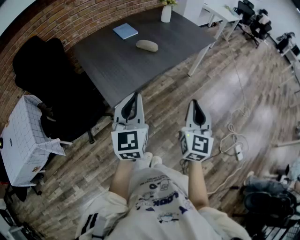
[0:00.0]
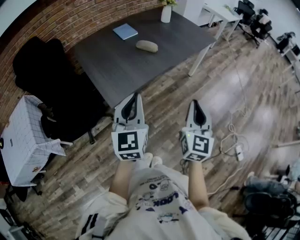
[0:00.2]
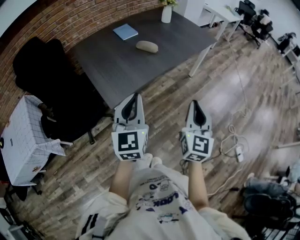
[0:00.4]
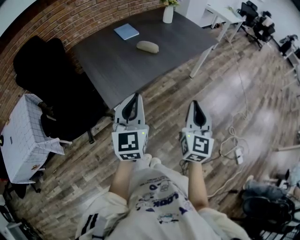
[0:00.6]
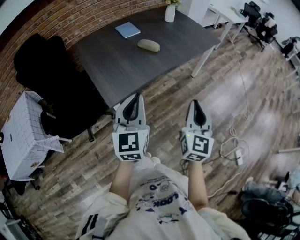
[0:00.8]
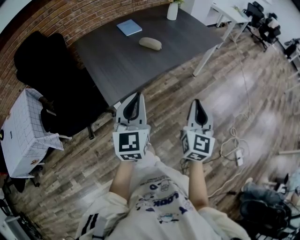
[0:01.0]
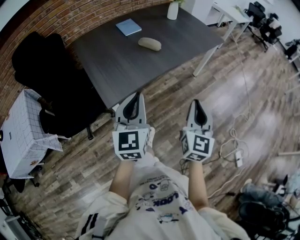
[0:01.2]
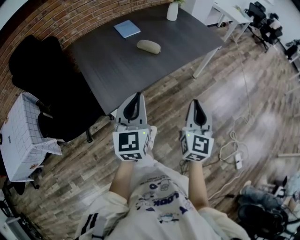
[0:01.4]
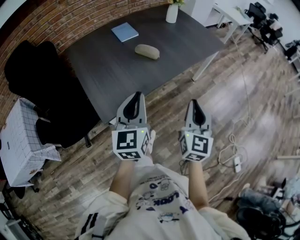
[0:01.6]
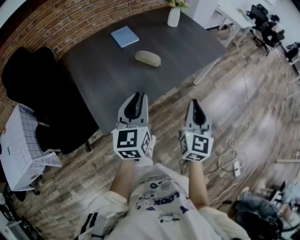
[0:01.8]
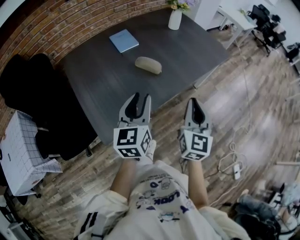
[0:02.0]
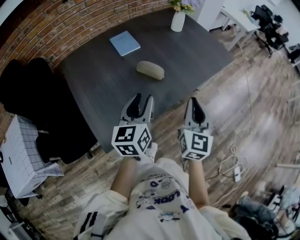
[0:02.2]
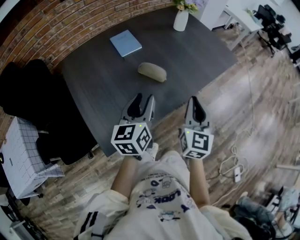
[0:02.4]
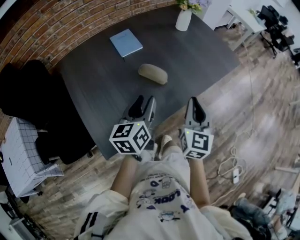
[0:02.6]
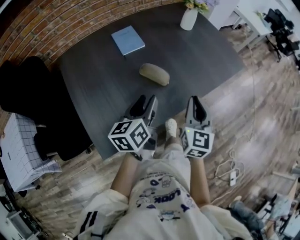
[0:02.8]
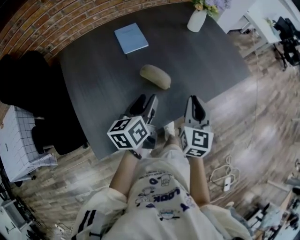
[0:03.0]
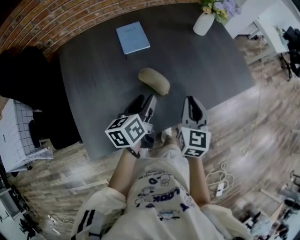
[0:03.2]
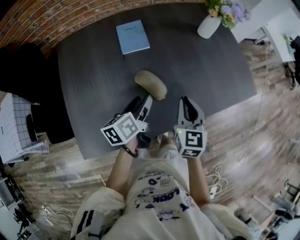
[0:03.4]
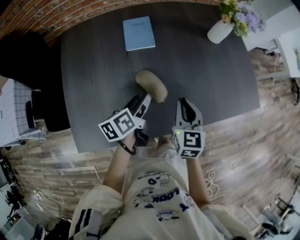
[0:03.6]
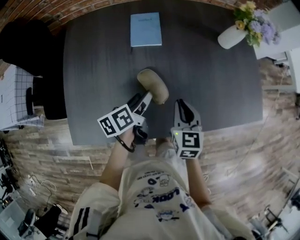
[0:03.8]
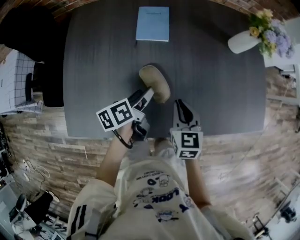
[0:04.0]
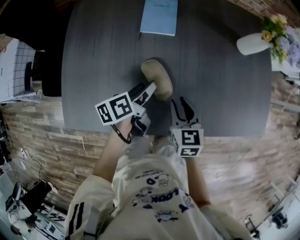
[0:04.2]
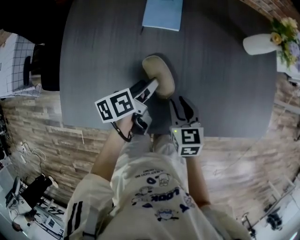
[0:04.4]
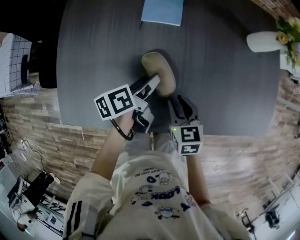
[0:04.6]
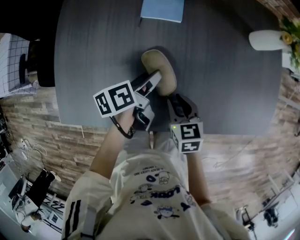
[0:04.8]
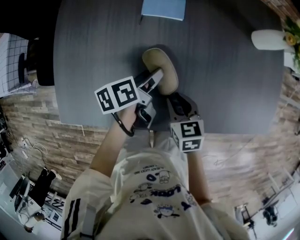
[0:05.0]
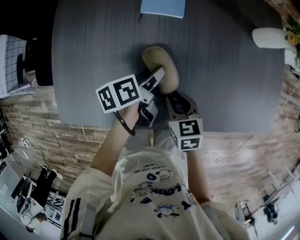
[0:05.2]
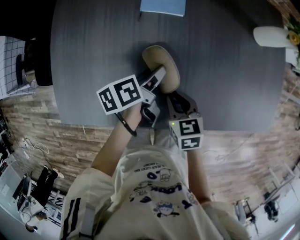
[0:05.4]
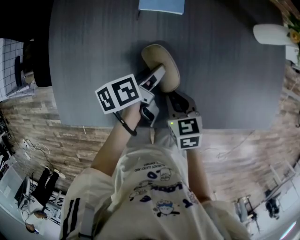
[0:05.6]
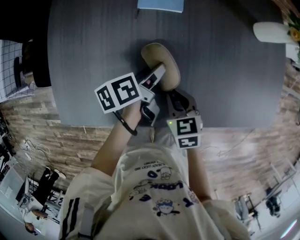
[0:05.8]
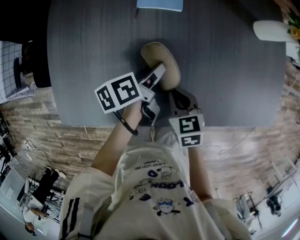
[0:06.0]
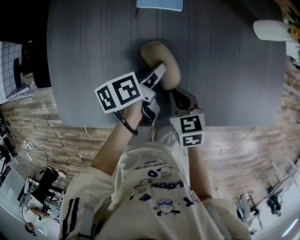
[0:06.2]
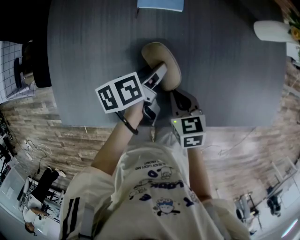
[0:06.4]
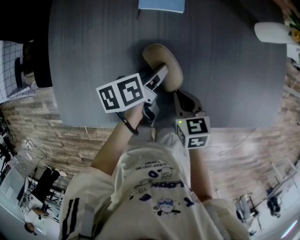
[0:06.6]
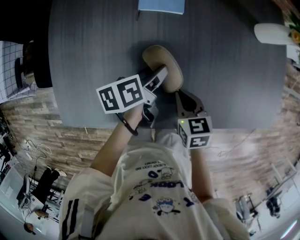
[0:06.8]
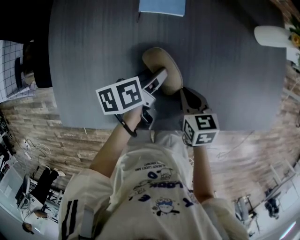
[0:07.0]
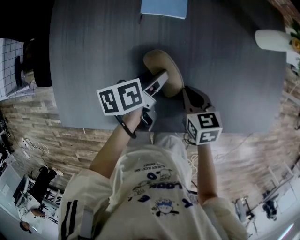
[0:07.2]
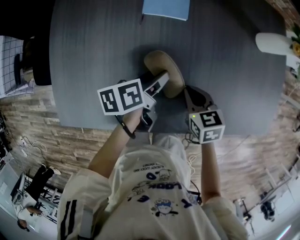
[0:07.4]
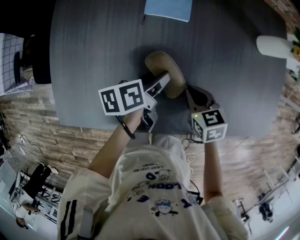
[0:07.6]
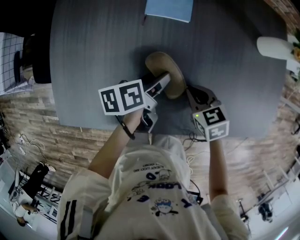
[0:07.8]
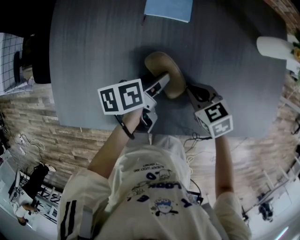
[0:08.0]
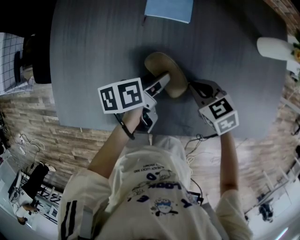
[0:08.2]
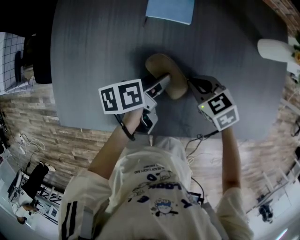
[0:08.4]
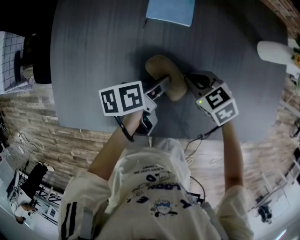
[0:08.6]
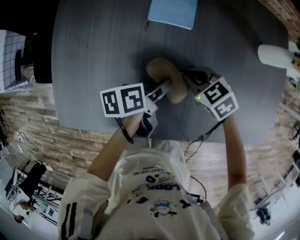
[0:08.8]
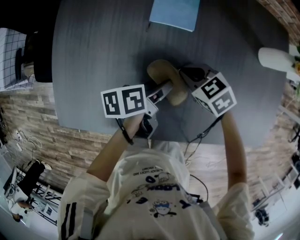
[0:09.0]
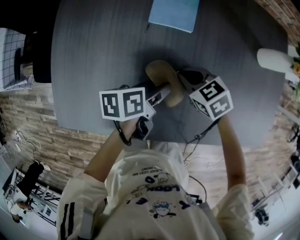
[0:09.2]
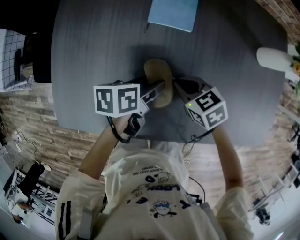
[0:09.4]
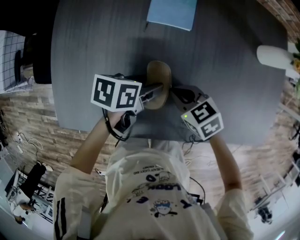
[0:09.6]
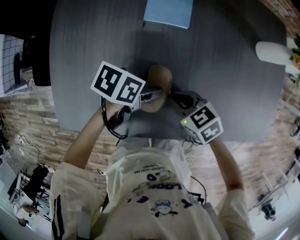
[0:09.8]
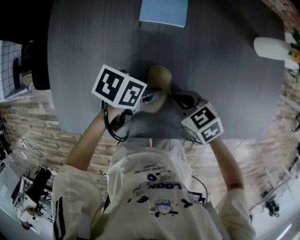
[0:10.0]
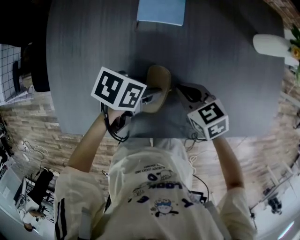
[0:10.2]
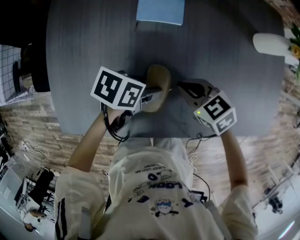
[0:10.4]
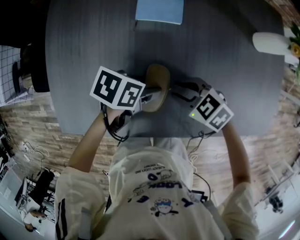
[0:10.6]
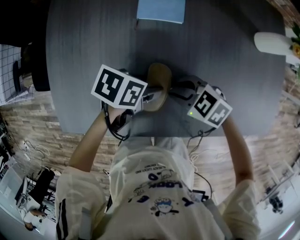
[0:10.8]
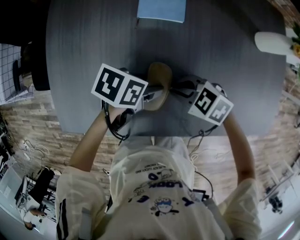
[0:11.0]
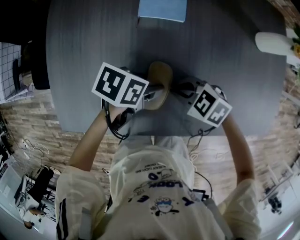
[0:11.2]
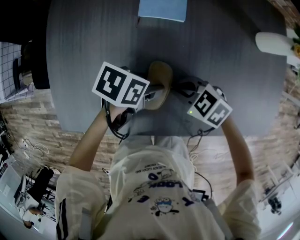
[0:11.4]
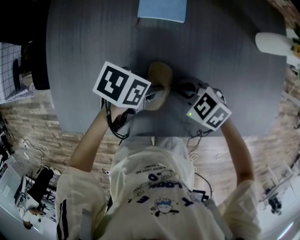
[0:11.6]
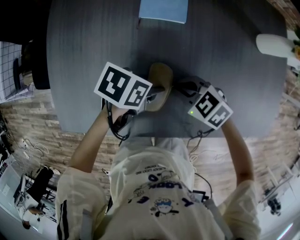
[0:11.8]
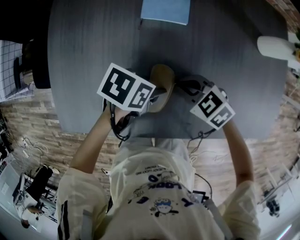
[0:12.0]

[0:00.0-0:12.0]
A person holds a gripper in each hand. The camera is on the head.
0.0 to 1.6 s: Both grippers travel together forward, approximately 15 cm.
1.6 to 3.0 s: Both grippers travel together forward, some 30 cm. The left gripper rotates approximately 40 degrees, and opens up.
3.0 to 4.4 s: Both grippers travel together downward, roughly 15 cm. The right gripper rotates some 50 degrees, and opens, while the left gripper swivels approximately 40 degrees.
4.4 to 6.0 s: The right gripper closes up.
6.0 to 7.6 s: The right gripper heads forward, covering some 5 cm.
7.6 to 9.0 s: The right gripper moves forward, roughly 10 cm, and turns by about 30 degrees.
9.0 to 10.4 s: The left gripper changes its angle by roughly 40 degrees.
10.4 to 12.0 s: The right gripper opens, then closes once more.

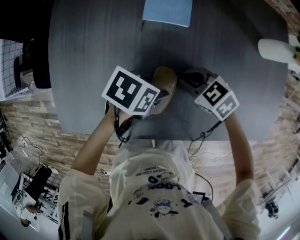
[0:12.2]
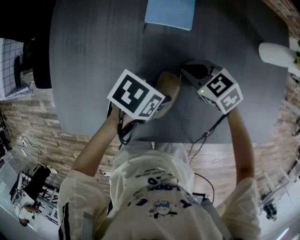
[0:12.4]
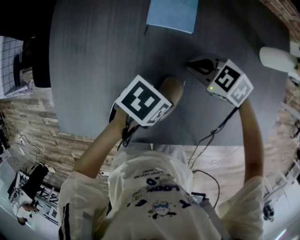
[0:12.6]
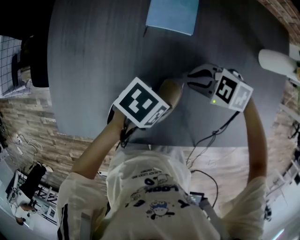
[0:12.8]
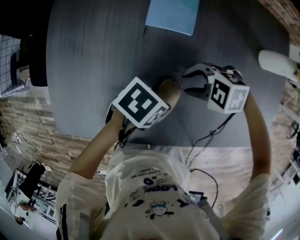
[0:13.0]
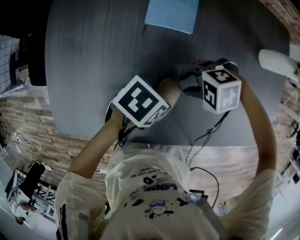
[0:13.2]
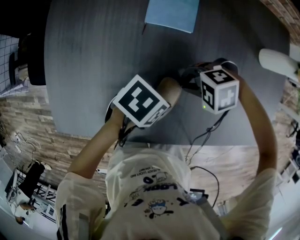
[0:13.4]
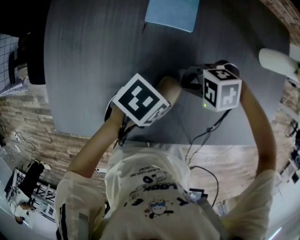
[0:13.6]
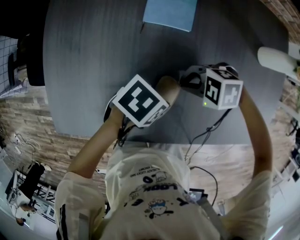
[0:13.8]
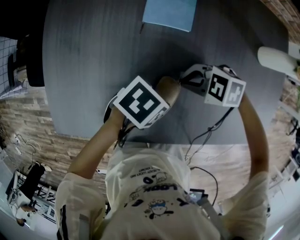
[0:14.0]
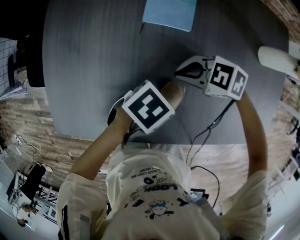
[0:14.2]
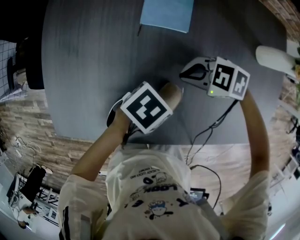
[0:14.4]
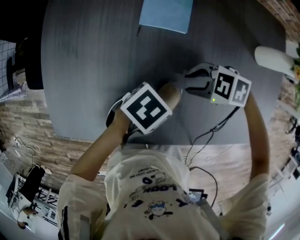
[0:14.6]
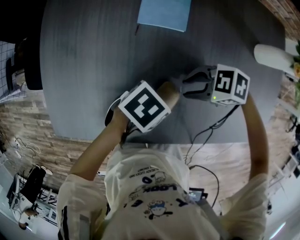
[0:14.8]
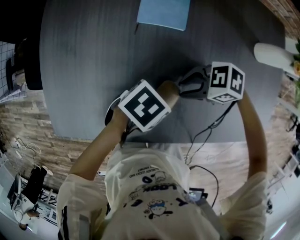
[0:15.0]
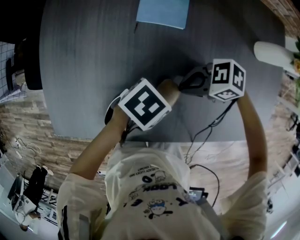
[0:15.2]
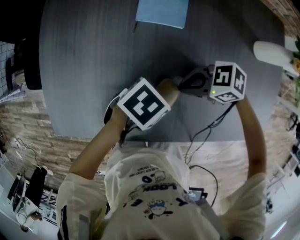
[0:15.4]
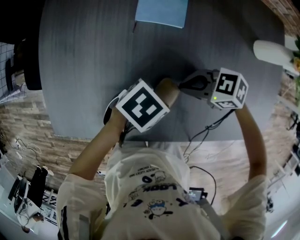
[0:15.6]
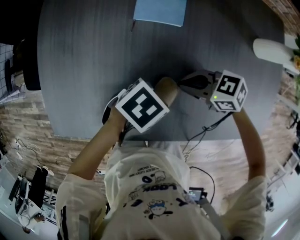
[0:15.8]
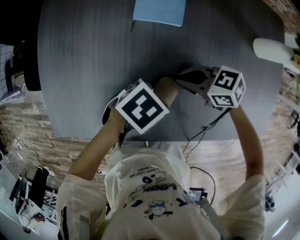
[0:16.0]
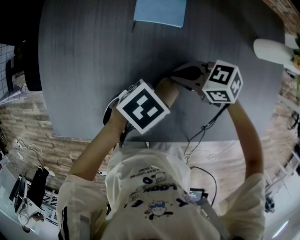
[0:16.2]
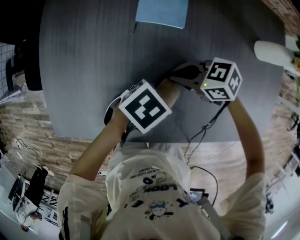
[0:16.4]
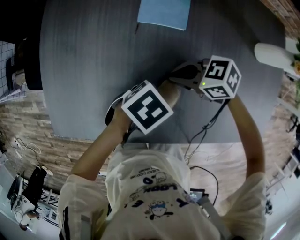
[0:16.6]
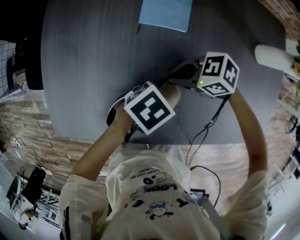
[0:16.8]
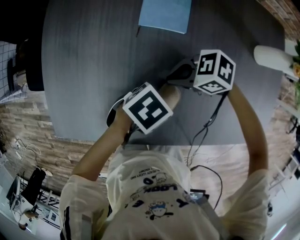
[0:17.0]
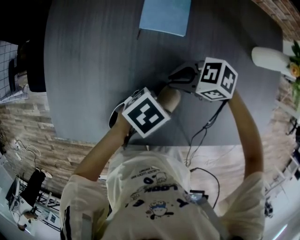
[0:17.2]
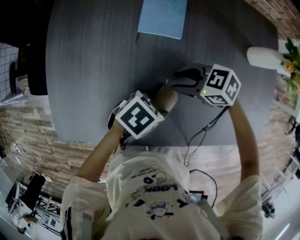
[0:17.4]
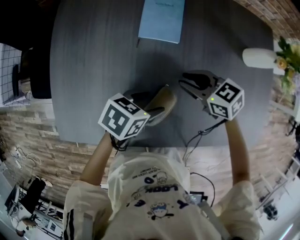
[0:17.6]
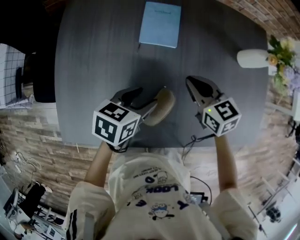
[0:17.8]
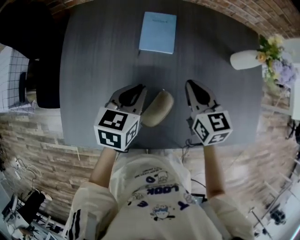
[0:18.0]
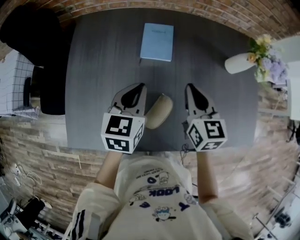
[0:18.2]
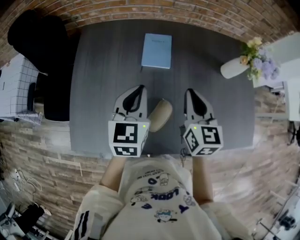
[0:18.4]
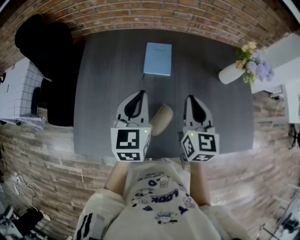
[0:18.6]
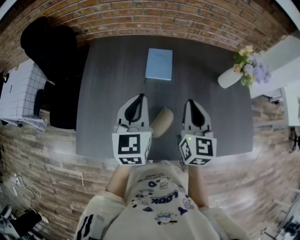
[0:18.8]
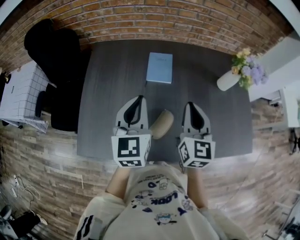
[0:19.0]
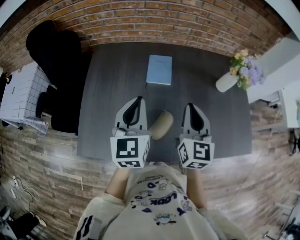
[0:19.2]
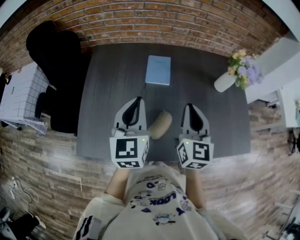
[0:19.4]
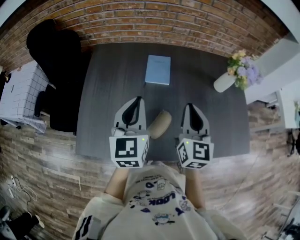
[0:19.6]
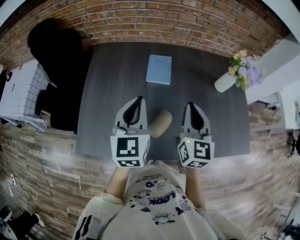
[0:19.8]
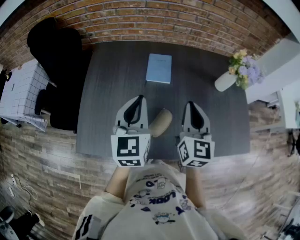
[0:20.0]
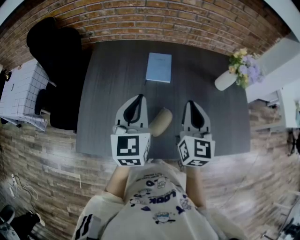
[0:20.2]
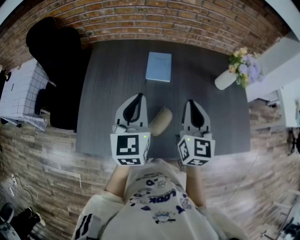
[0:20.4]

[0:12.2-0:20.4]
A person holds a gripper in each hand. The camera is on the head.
12.2 to 13.8 s: The right gripper swivels about 40 degrees, and opens, then closes again.
13.8 to 15.4 s: The right gripper turns by some 30 degrees, and opens and closes again.
15.4 to 17.2 s: The right gripper changes place by about 5 cm.
17.2 to 18.8 s: Both grippers move upward, approximately 25 cm. The left gripper points its fingers about 40 degrees further upward, and closes its fingers. The right gripper points its fingers approximately 30 degrees further upward, and opens, then closes again.
18.8 to 20.4 s: The grippers make only small movements.

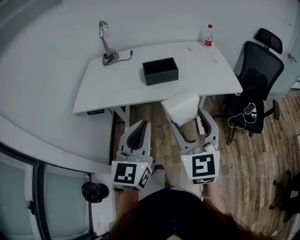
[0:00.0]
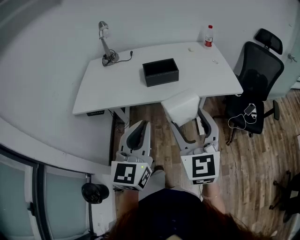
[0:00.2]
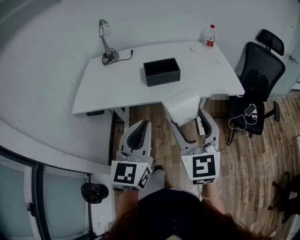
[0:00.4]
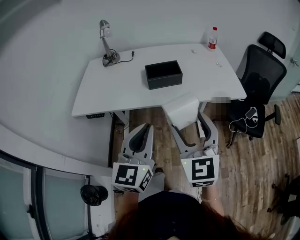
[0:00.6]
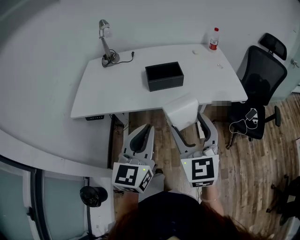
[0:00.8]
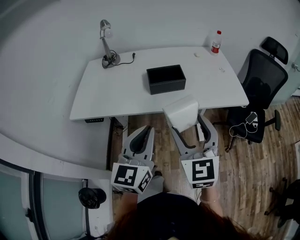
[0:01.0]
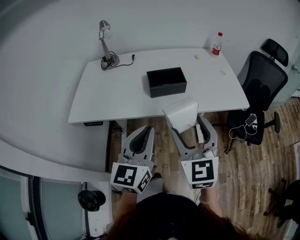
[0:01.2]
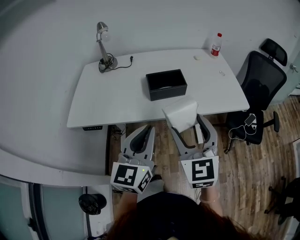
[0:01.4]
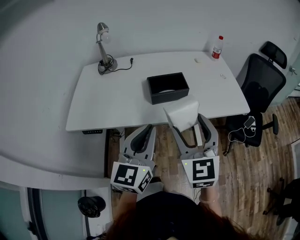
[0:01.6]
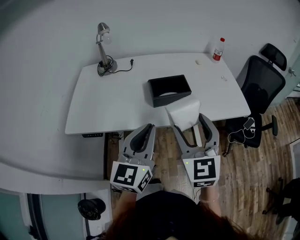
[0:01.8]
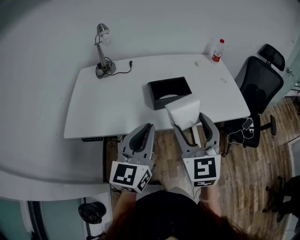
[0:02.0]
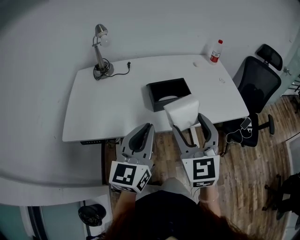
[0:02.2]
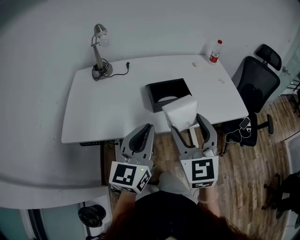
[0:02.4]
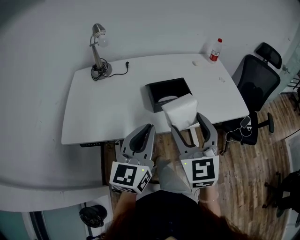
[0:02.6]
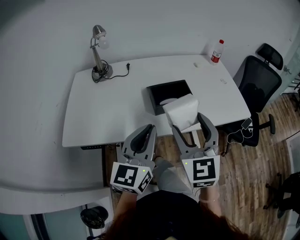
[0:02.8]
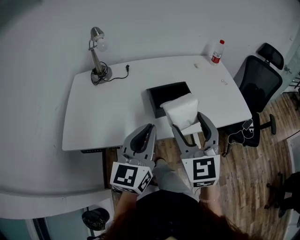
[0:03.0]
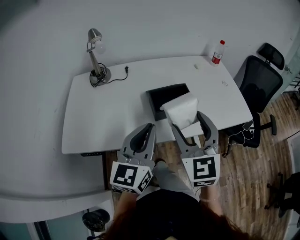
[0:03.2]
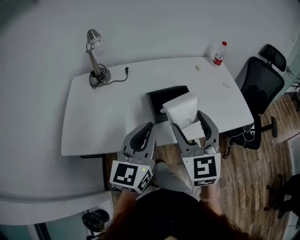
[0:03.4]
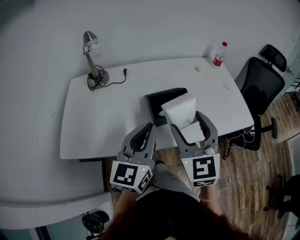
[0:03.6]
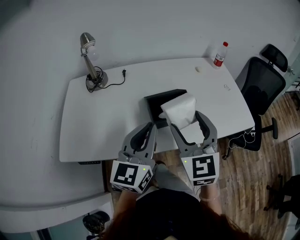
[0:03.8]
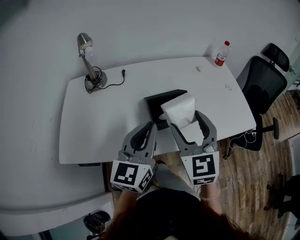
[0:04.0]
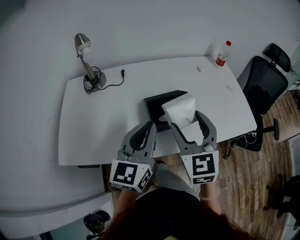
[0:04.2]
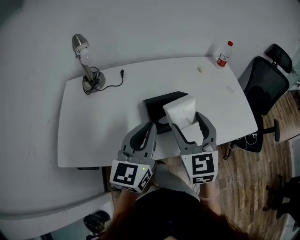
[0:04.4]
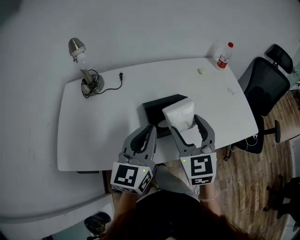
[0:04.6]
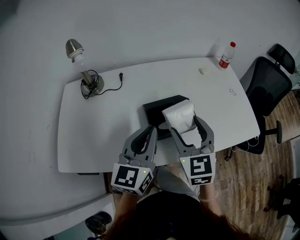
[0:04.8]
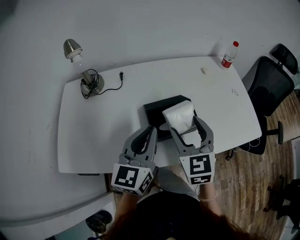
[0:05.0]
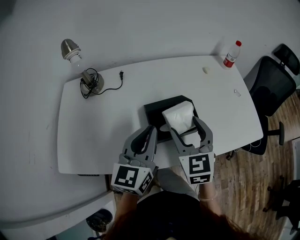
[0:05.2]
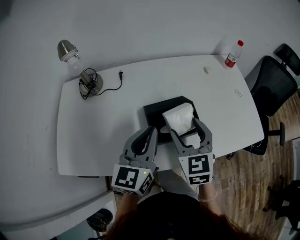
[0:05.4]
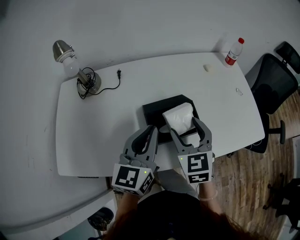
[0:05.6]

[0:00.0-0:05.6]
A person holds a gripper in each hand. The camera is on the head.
0.0 to 1.4 s: The right gripper travels forward and to the left by about 10 cm. The left gripper shifts some 10 cm forward.
1.4 to 2.8 s: The two grippers go some 10 cm forward and to the left.
2.8 to 4.2 s: Both grippers travel together forward, approximately 10 cm.
4.2 to 5.6 s: The right gripper shifts some 10 cm downward and forward. The left gripper is displaced forward by some 5 cm.
